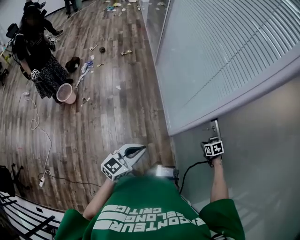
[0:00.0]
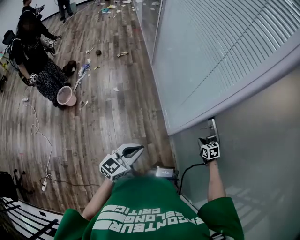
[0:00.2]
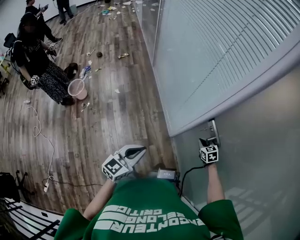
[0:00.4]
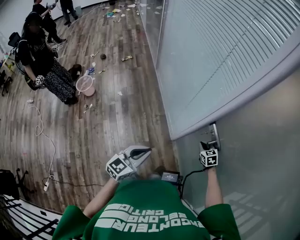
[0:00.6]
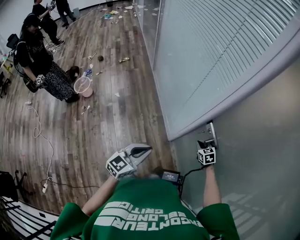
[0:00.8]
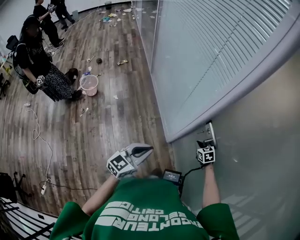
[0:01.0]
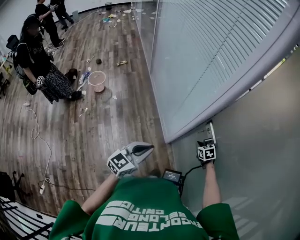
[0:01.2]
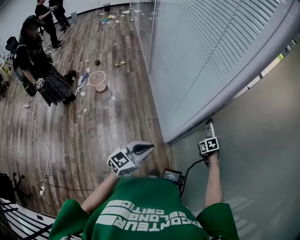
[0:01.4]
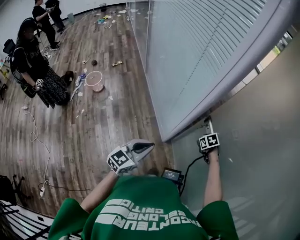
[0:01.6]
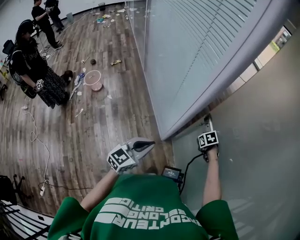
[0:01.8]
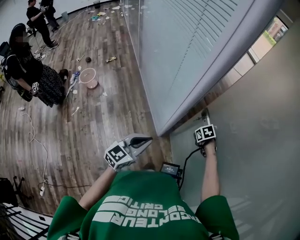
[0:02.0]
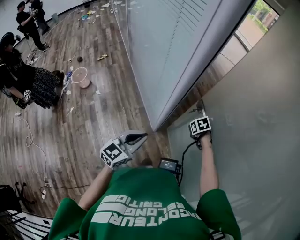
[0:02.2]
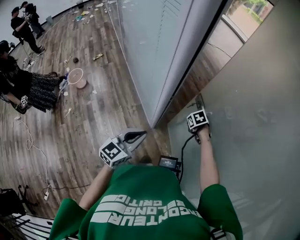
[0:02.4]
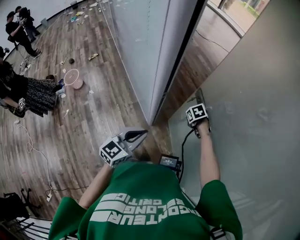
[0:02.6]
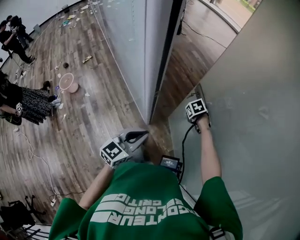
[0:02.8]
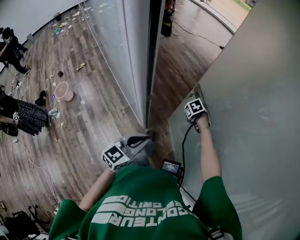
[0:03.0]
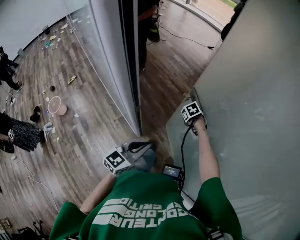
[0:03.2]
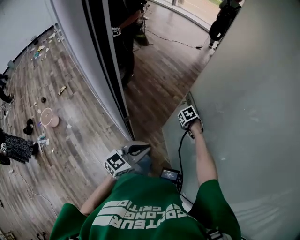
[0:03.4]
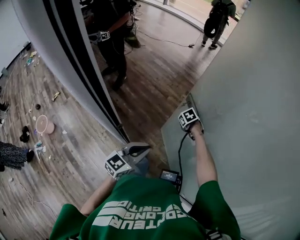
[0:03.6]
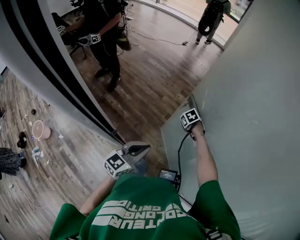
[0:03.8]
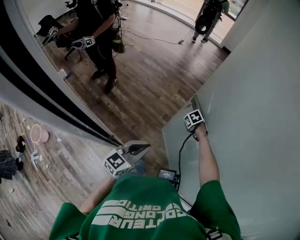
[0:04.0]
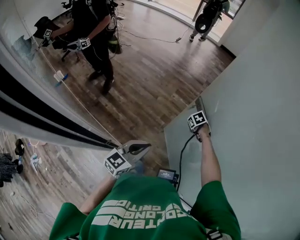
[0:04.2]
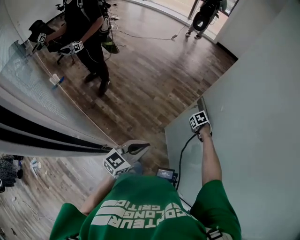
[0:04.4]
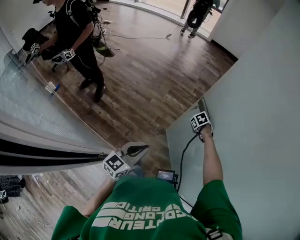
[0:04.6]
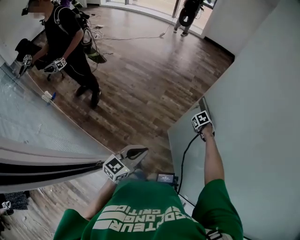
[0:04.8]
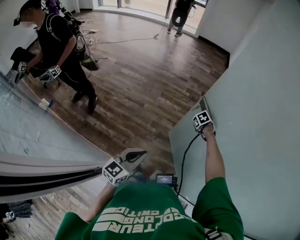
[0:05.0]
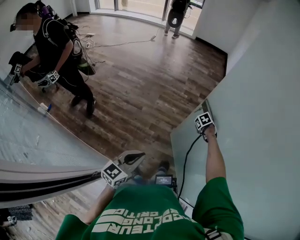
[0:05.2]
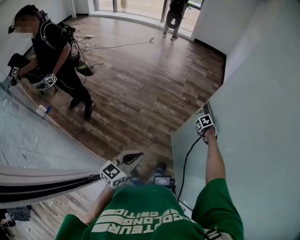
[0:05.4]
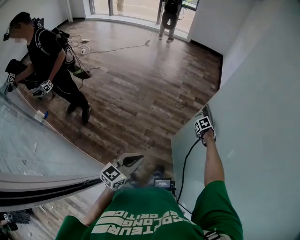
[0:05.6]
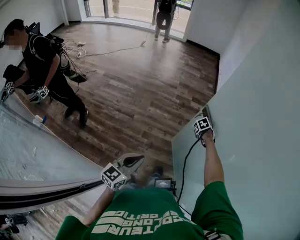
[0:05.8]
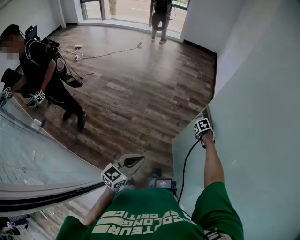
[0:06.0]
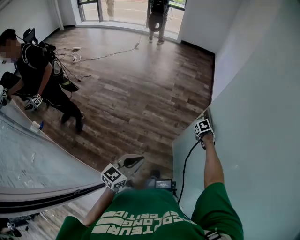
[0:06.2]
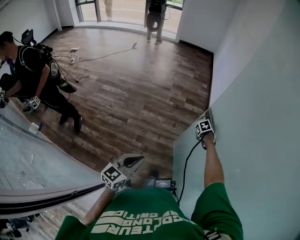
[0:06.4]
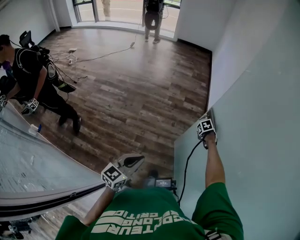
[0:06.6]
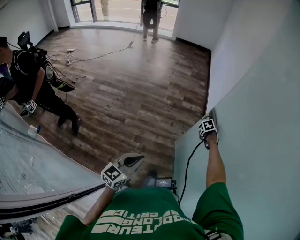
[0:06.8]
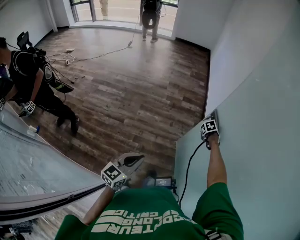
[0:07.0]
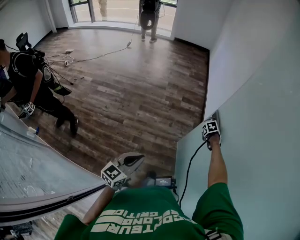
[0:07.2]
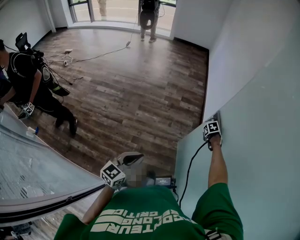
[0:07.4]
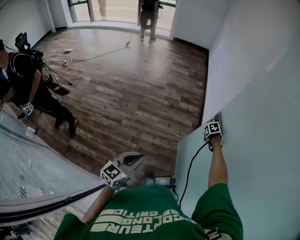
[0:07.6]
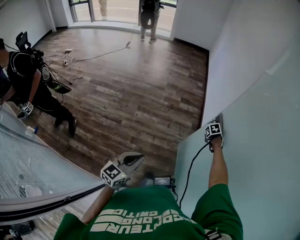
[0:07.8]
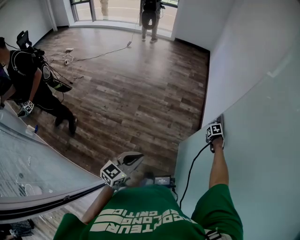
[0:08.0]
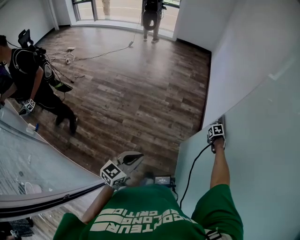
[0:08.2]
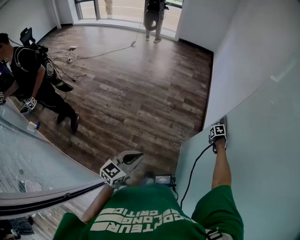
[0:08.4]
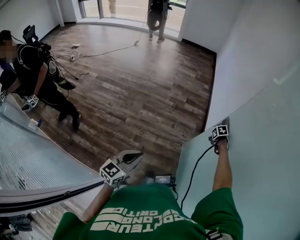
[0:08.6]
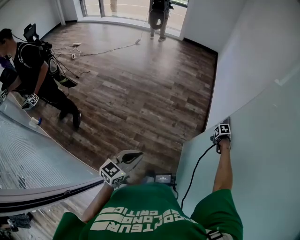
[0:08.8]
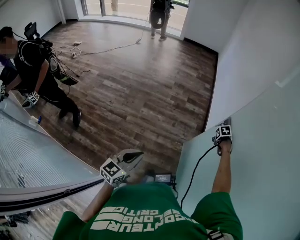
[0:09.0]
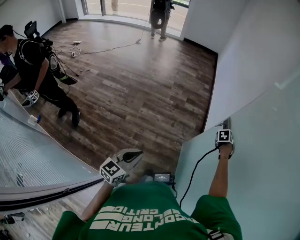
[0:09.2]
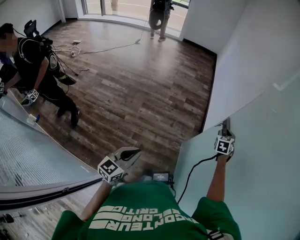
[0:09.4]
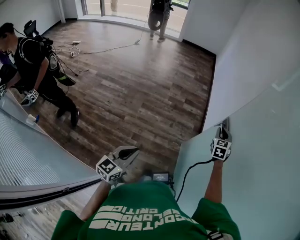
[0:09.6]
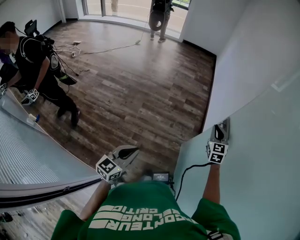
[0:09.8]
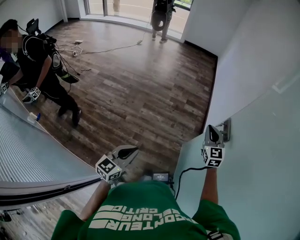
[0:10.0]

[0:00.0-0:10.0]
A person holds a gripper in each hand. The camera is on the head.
0:00.0 to 0:01.4: The left gripper ends up roughly 10 cm from where it was.
0:01.4 to 0:02.8: The right gripper shifts by approximately 15 cm. Meanwhile the left gripper moves approximately 15 cm.
0:02.8 to 0:04.2: The left gripper moves roughly 25 cm, and rotates approximately 30 degrees. The right gripper ends up approximately 30 cm from where it was, and turns by about 20 degrees.
0:04.2 to 0:05.8: The right gripper shifts by some 25 cm, and turns by roughly 20 degrees; the left gripper moves about 20 cm.
0:05.8 to 0:07.2: The left gripper ends up approximately 10 cm from where it was; the right gripper changes place by approximately 15 cm.
0:07.2 to 0:08.6: There are only small adjustments of the grippers.
0:08.6 to 0:10.0: The right gripper travels upward by some 25 cm, and points its fingers some 70 degrees further upward.

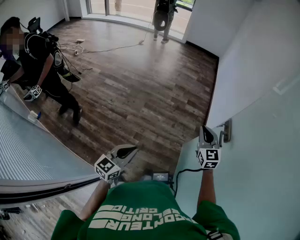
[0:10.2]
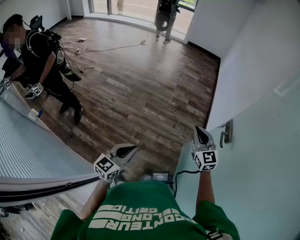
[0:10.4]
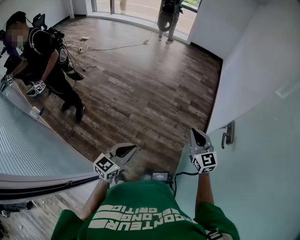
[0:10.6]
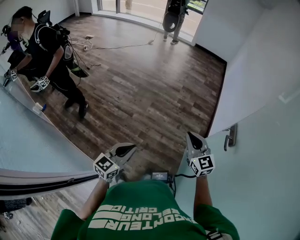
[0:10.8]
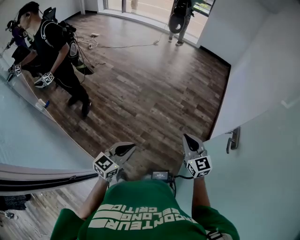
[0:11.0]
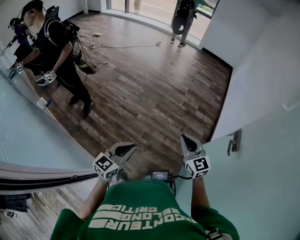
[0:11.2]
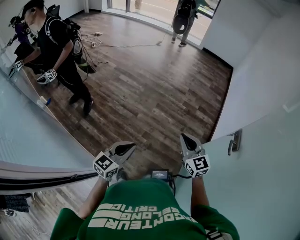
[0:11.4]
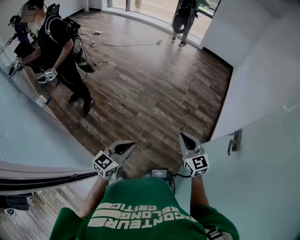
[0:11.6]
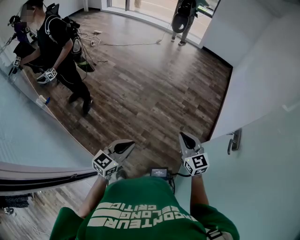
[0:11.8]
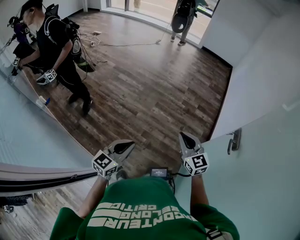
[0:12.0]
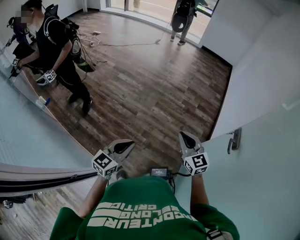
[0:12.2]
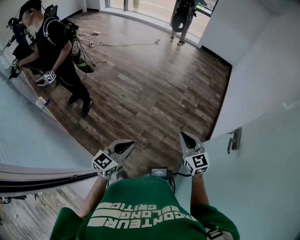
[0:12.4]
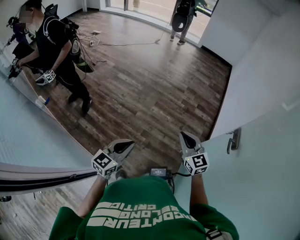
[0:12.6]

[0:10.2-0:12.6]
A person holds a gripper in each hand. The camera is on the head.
0:10.2 to 0:11.4: The left gripper is displaced to the left by roughly 10 cm. The right gripper moves to the left and backward, approximately 20 cm, and turns by about 30 degrees.
0:11.4 to 0:12.6: Neither gripper changes place.

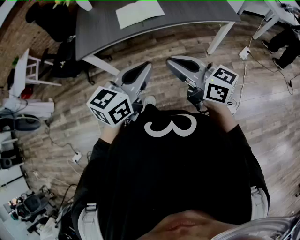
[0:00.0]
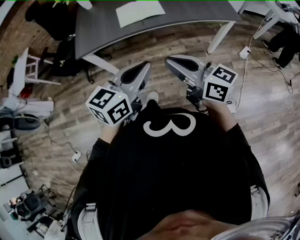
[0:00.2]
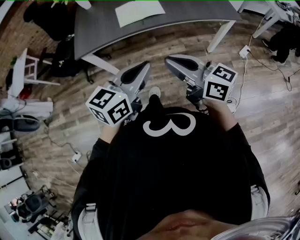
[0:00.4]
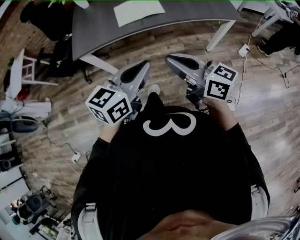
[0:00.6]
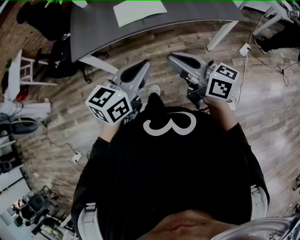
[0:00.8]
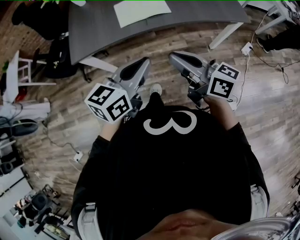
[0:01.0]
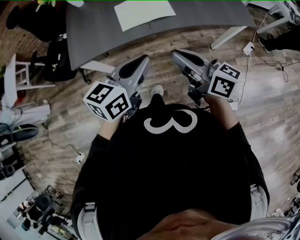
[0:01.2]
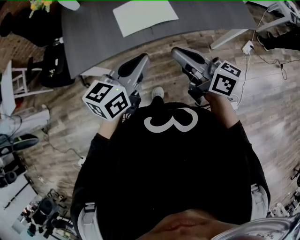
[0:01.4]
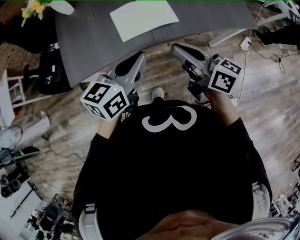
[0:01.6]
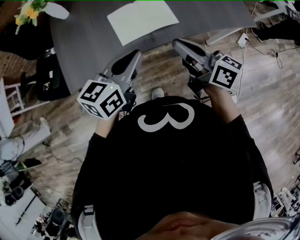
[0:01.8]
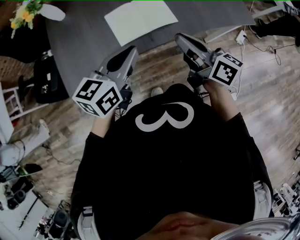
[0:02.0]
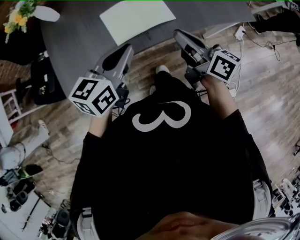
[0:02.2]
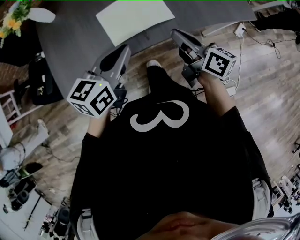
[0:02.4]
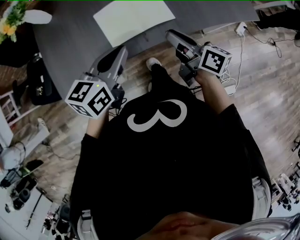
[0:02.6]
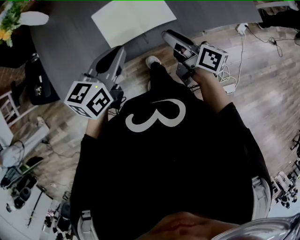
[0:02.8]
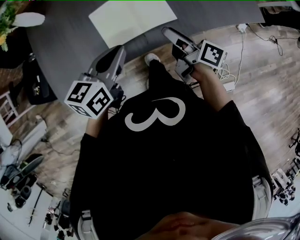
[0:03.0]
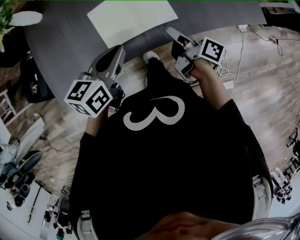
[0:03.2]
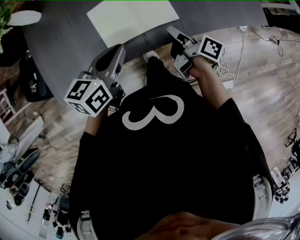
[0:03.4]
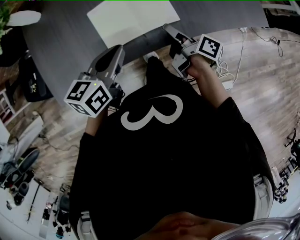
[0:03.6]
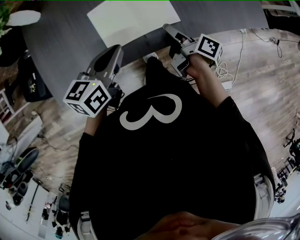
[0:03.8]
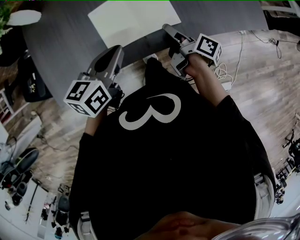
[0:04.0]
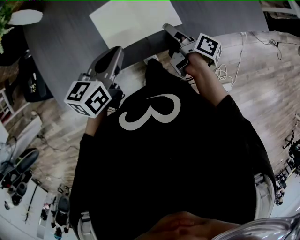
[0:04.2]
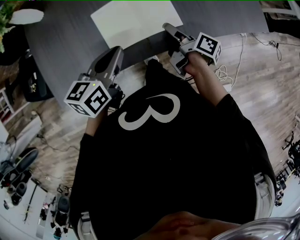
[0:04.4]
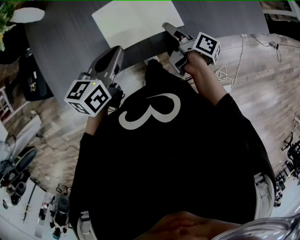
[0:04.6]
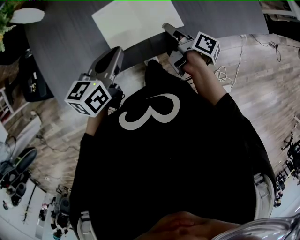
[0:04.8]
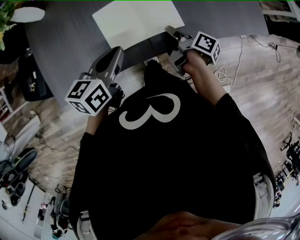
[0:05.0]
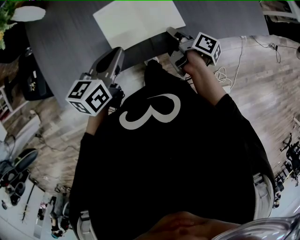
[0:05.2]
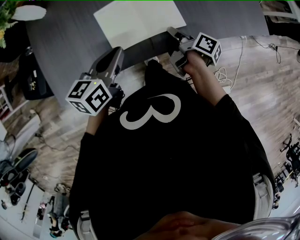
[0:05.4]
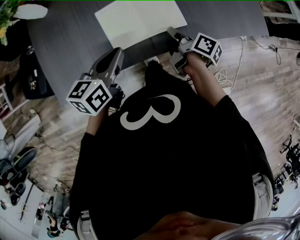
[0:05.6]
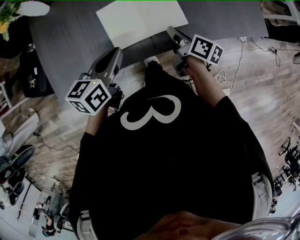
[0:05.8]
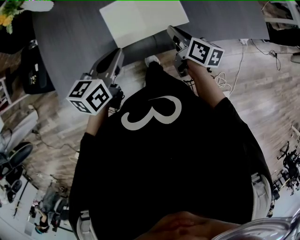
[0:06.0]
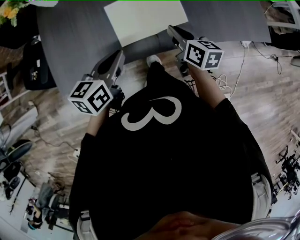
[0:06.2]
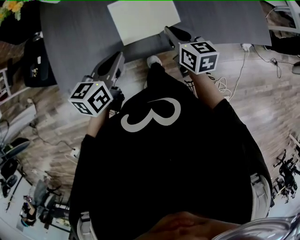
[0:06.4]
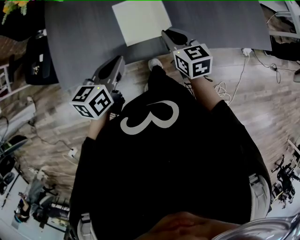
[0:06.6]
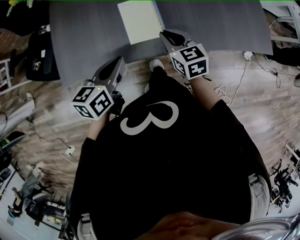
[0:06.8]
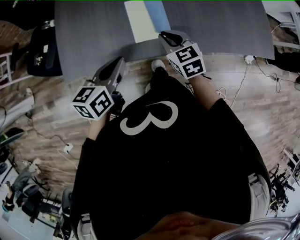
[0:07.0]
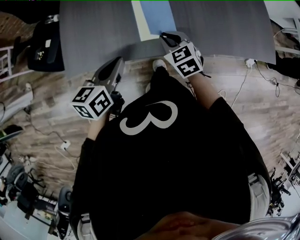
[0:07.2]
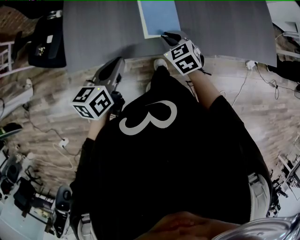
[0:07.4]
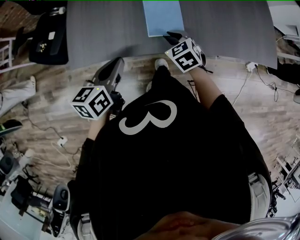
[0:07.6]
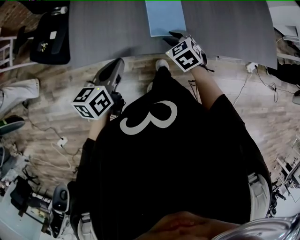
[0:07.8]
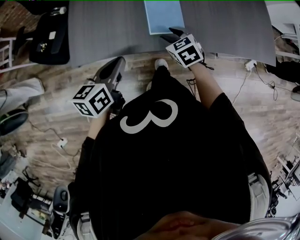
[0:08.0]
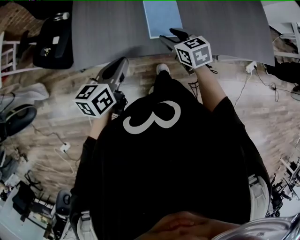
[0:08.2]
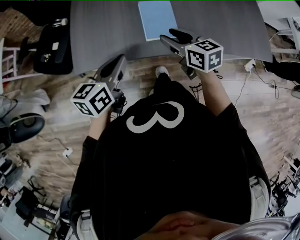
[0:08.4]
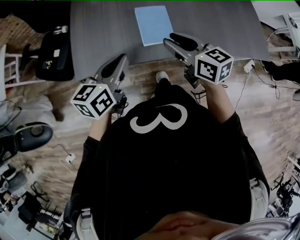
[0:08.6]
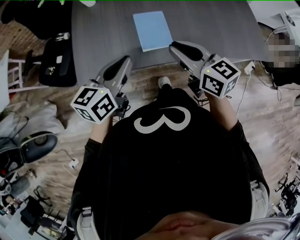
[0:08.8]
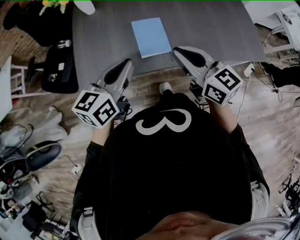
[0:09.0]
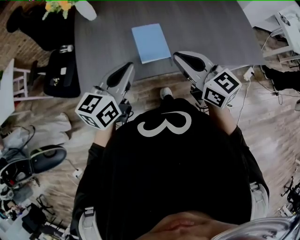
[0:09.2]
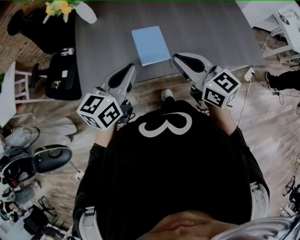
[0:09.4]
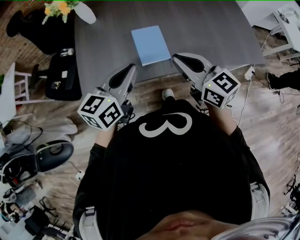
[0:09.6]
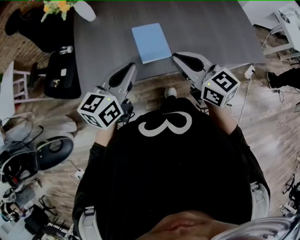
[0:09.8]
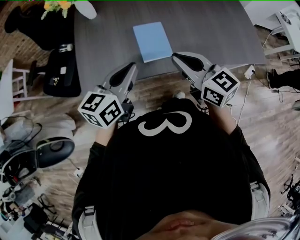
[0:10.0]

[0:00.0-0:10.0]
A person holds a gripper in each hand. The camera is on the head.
0:00.0 to 0:01.4: The grippers both shift forward by roughly 20 cm.
0:01.4 to 0:02.8: The left gripper is displaced forward by roughly 15 cm. The right gripper is displaced forward and downward by some 20 cm, swivels roughly 30 degrees, and opens.
0:02.8 to 0:04.2: The right gripper shifts roughly 10 cm downward and forward, turns by approximately 30 degrees, and opens its fingers. Meanwhile the left gripper ends up approximately 5 cm from where it was.
0:04.2 to 0:05.8: The right gripper rotates roughly 20 degrees, and closes its fingers.
0:05.8 to 0:07.2: The left gripper shifts approximately 10 cm to the left and backward; the right gripper moves to the left, roughly 15 cm, and rotates around the line of its fingers by some 80 degrees, counterclockwise from behind.
0:07.2 to 0:08.6: The left gripper goes some 5 cm upward; the right gripper moves upward, roughly 15 cm, and rotates approximately 40 degrees.
0:08.6 to 0:10.0: The right gripper goes approximately 5 cm upward, and closes, while the left gripper ends up approximately 5 cm from where it was.

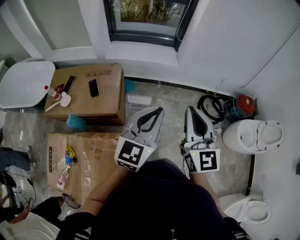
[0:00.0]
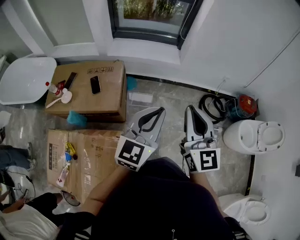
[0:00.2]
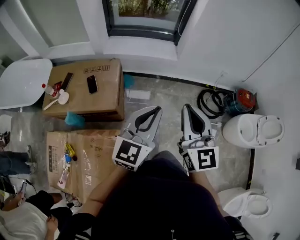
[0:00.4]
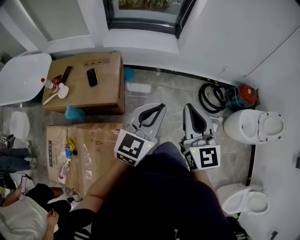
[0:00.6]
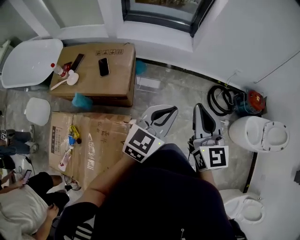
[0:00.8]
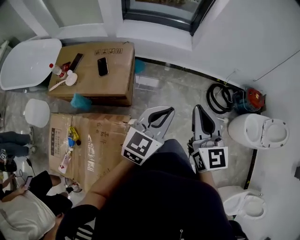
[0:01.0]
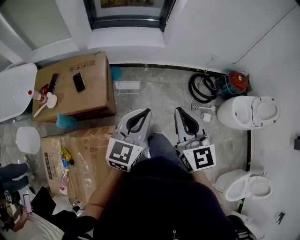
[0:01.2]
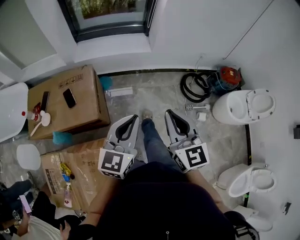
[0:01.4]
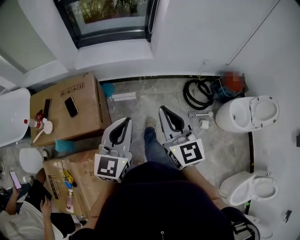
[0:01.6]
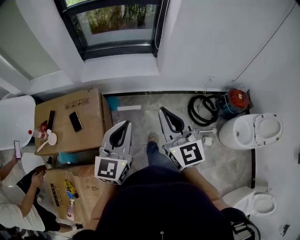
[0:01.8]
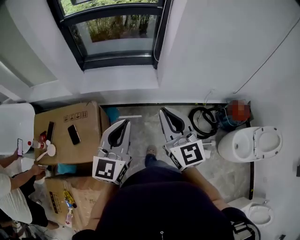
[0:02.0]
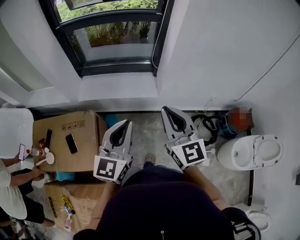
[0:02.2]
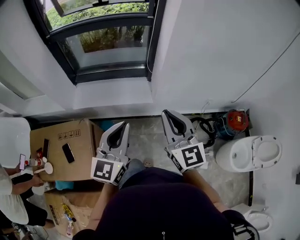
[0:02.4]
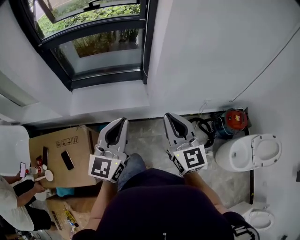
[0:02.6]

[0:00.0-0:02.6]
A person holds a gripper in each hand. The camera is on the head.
0:00.0 to 0:01.2: The grippers both shift downward by roughly 10 cm.
0:01.2 to 0:02.6: Both grippers are carried forward, roughly 40 cm.
